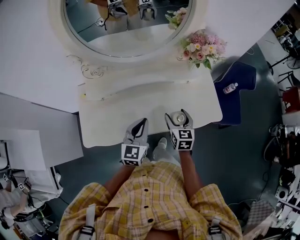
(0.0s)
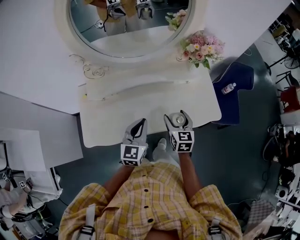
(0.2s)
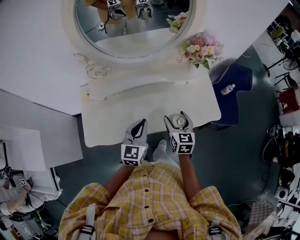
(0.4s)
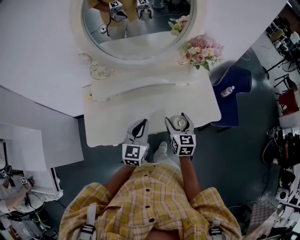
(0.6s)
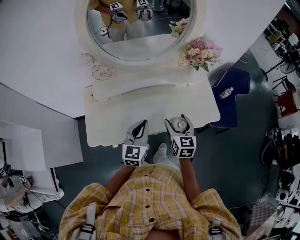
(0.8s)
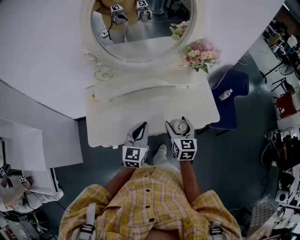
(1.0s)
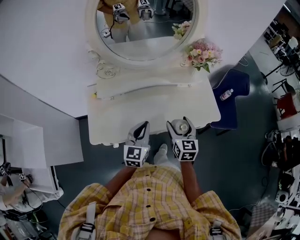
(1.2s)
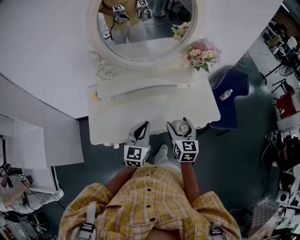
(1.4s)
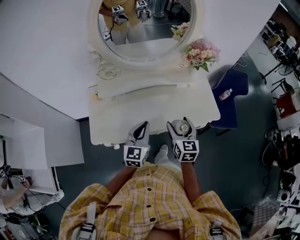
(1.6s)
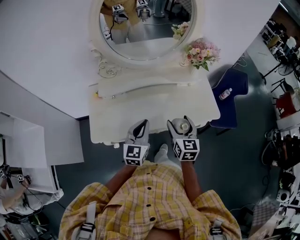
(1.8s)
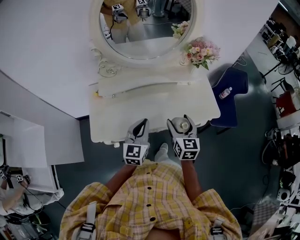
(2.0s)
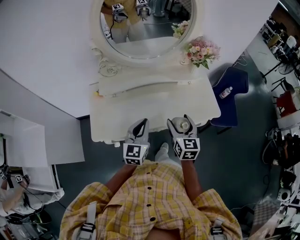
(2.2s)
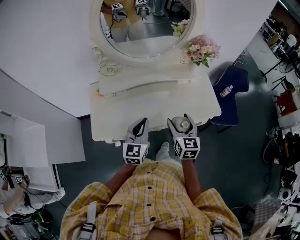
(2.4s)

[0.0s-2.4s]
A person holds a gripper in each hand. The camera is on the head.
0.0s to 1.2s: The left gripper heads backward, covering approximately 5 cm. The right gripper goes roughly 15 cm upward and backward.
1.2s to 2.4s: The grippers stay close to where they were, moving slightly.

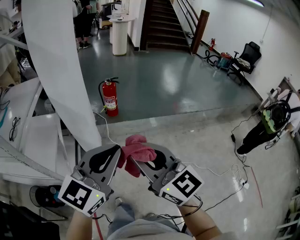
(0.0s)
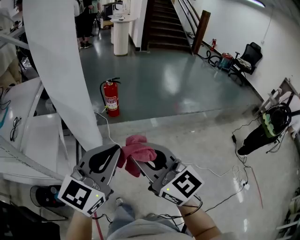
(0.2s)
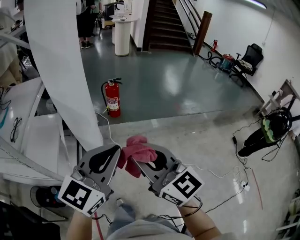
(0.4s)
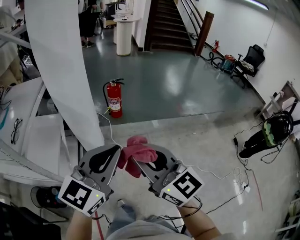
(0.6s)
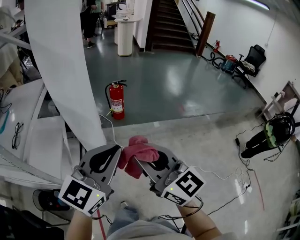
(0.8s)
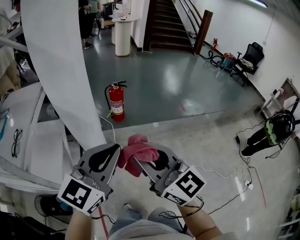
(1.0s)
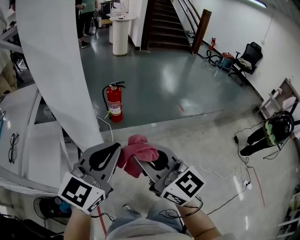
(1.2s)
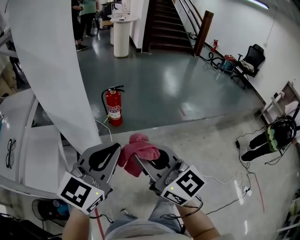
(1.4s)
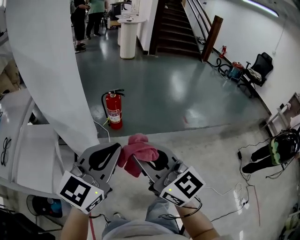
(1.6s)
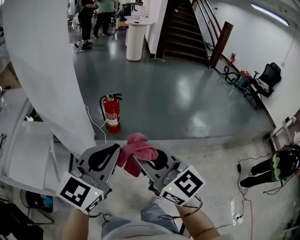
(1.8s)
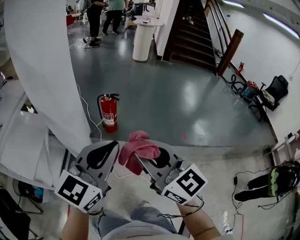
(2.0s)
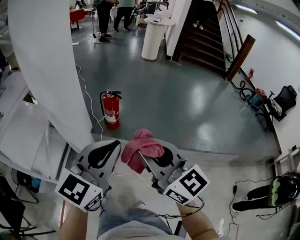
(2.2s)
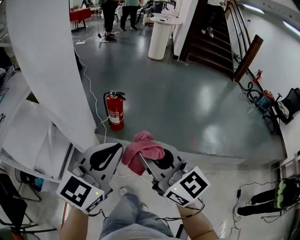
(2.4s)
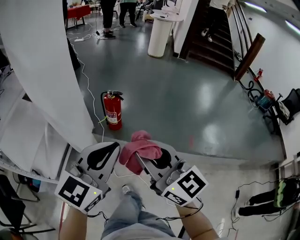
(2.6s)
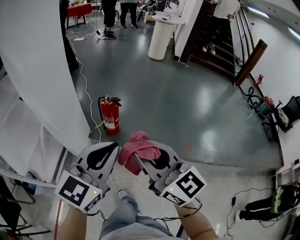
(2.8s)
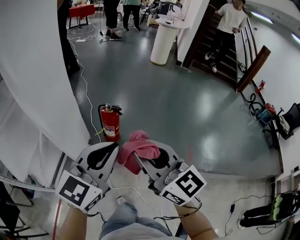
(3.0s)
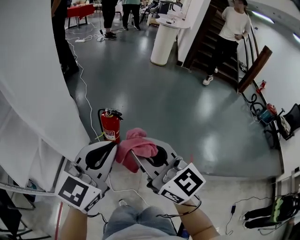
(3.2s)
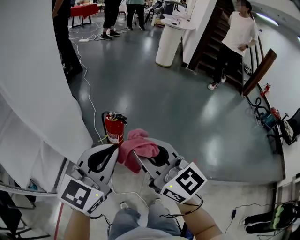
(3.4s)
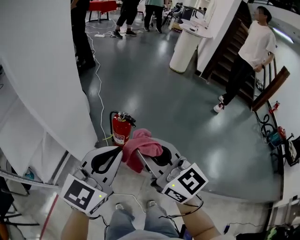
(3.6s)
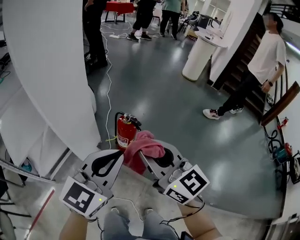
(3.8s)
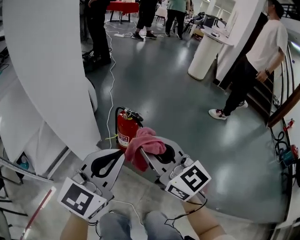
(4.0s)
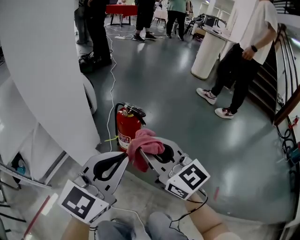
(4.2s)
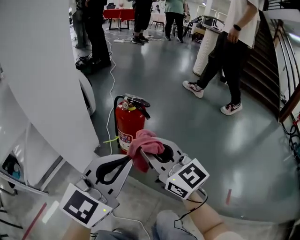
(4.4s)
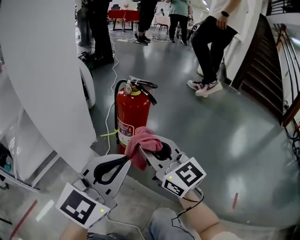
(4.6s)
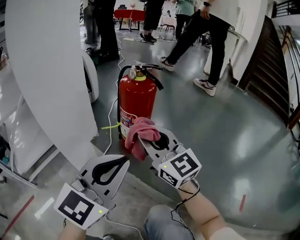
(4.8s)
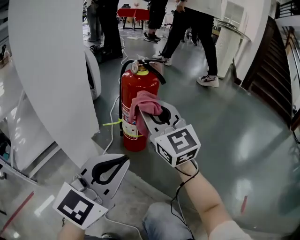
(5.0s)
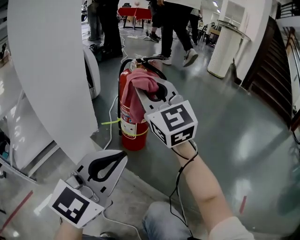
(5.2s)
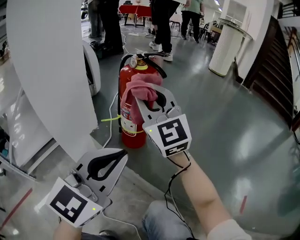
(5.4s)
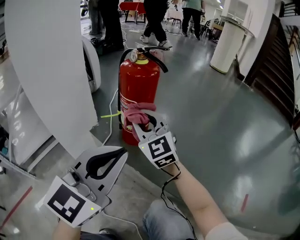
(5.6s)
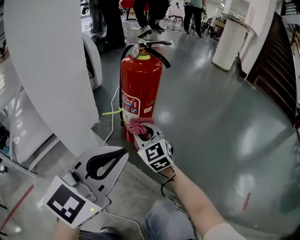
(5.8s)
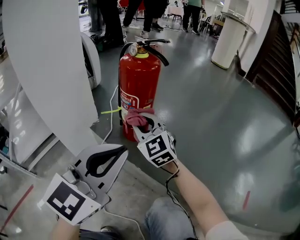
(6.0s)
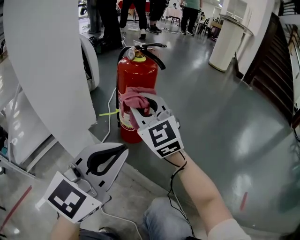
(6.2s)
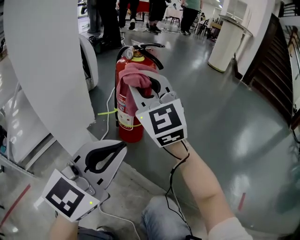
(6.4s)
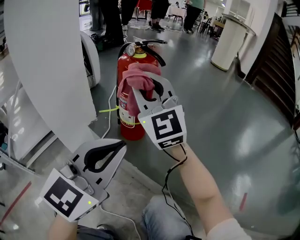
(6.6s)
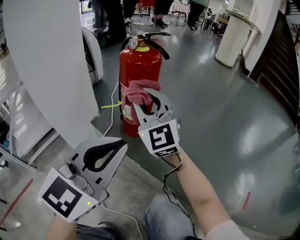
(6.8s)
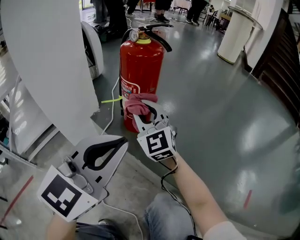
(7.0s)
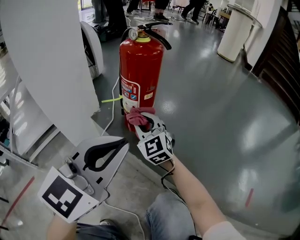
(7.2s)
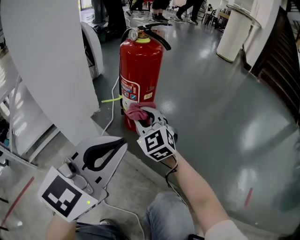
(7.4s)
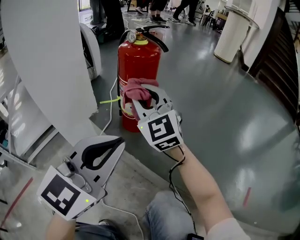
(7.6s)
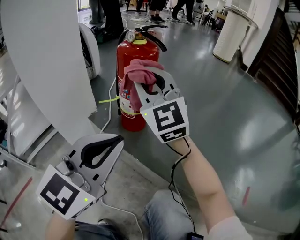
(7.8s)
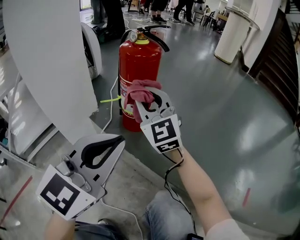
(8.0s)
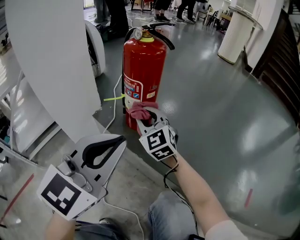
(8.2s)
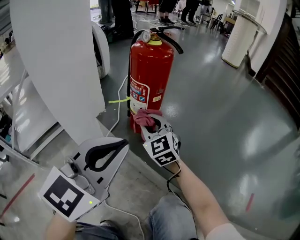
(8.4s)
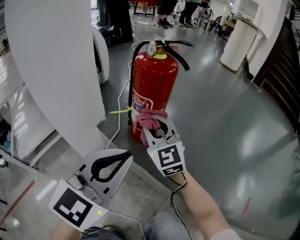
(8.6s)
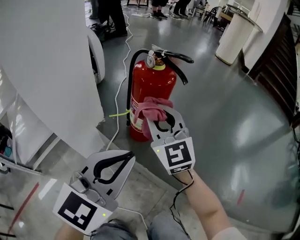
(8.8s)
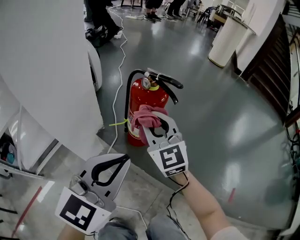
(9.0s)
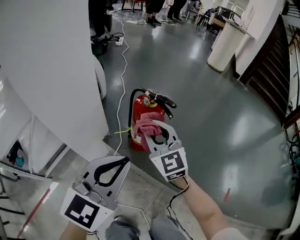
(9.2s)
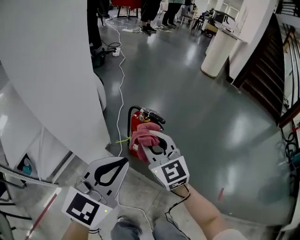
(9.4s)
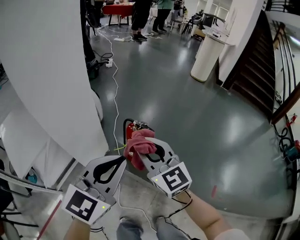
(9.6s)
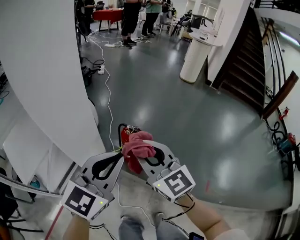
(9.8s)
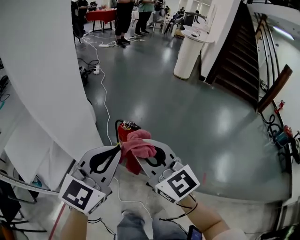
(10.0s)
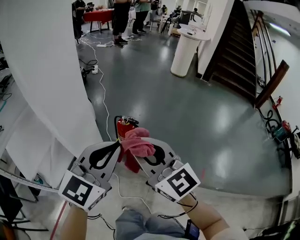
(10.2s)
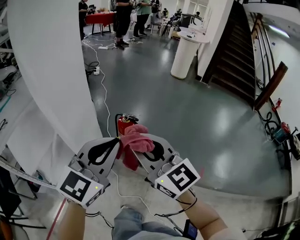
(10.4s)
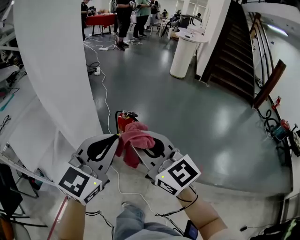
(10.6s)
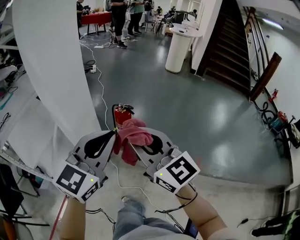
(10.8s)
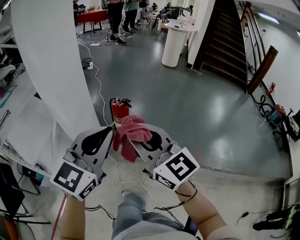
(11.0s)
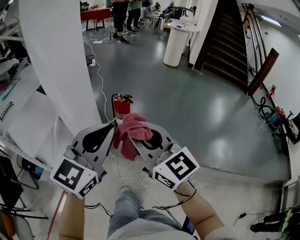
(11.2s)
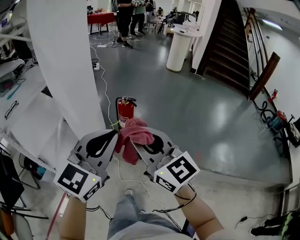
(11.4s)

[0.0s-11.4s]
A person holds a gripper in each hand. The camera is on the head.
0.0s to 1.4s: The two grippers go approximately 15 cm forward.
1.4s to 2.8s: The two grippers go about 30 cm to the right and forward. The left gripper turns by roughly 20 degrees; the right gripper changes its angle by about 20 degrees.
2.8s to 4.2s: The right gripper is displaced forward and downward by about 35 cm, while the left gripper shifts approximately 30 cm downward and forward.
4.2s to 5.6s: The left gripper travels downward by roughly 25 cm. Meanwhile the right gripper swings up and down, roughly 35 cm each way, with 2 reversals, and rotates some 30 degrees.
5.6s to 7.2s: The right gripper goes up and down, roughly 25 cm each way, reversing 2 times.
7.2s to 8.6s: The right gripper goes up and down, roughly 20 cm each way, reversing 2 times.
8.6s to 10.0s: Both grippers move upward, roughly 50 cm.
10.0s to 11.4s: The grippers both shift backward by roughly 20 cm.

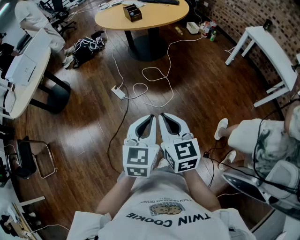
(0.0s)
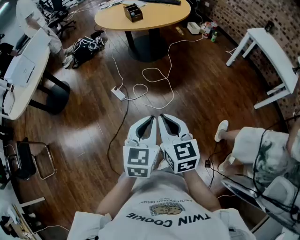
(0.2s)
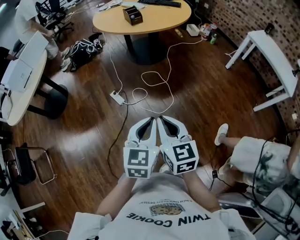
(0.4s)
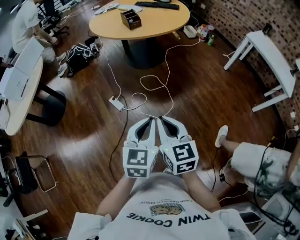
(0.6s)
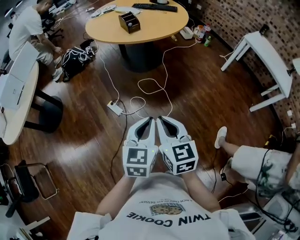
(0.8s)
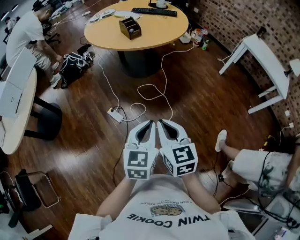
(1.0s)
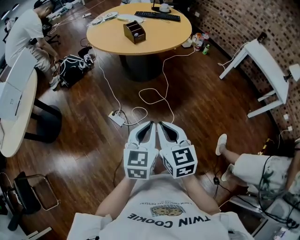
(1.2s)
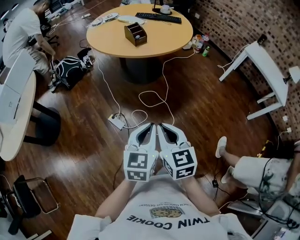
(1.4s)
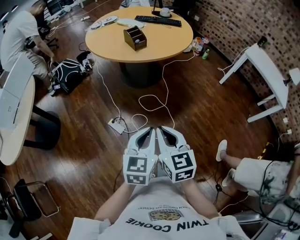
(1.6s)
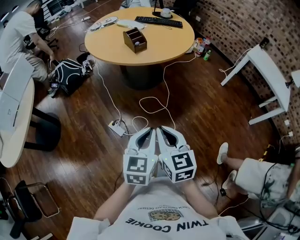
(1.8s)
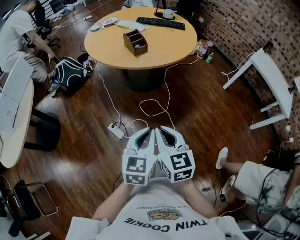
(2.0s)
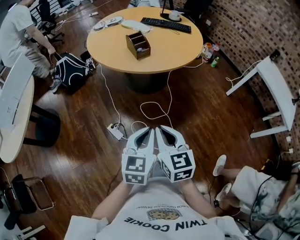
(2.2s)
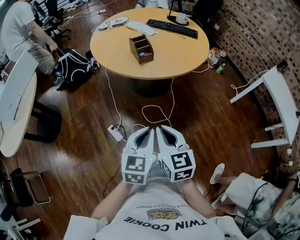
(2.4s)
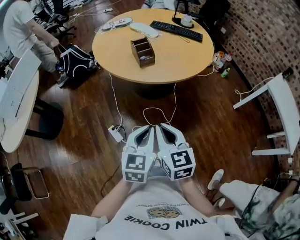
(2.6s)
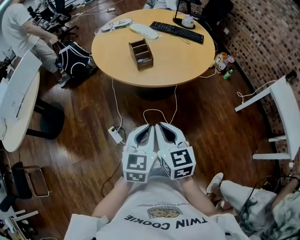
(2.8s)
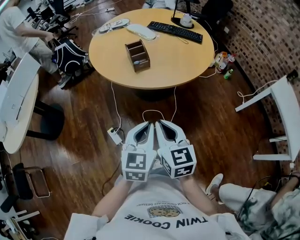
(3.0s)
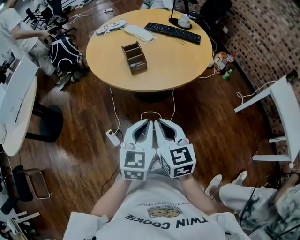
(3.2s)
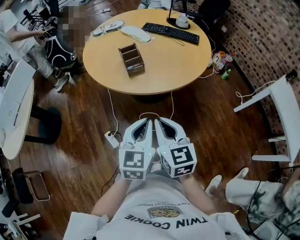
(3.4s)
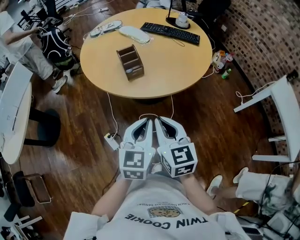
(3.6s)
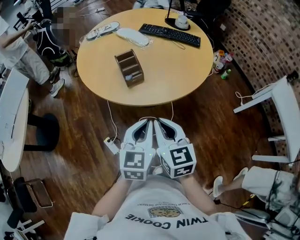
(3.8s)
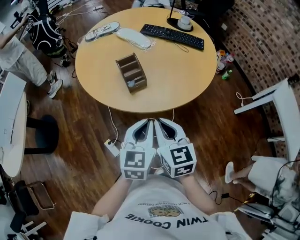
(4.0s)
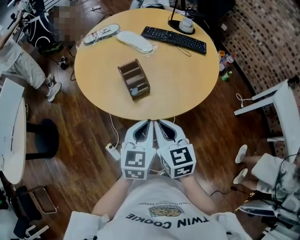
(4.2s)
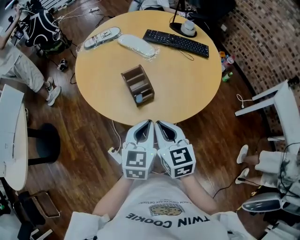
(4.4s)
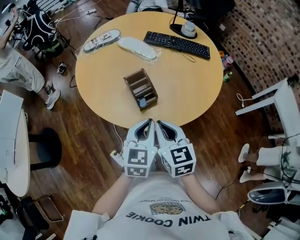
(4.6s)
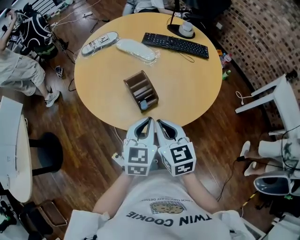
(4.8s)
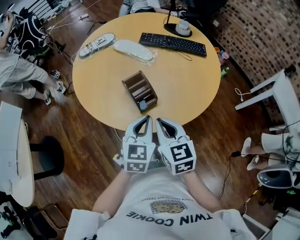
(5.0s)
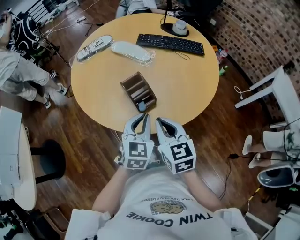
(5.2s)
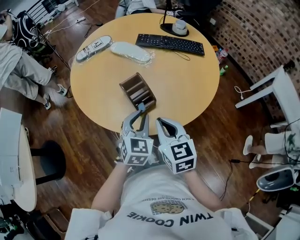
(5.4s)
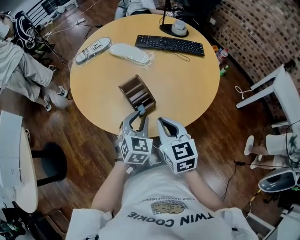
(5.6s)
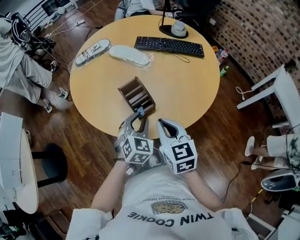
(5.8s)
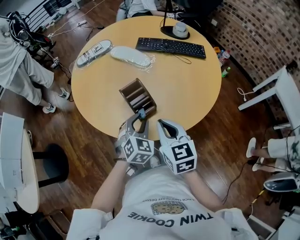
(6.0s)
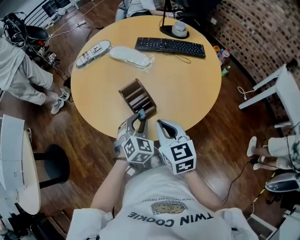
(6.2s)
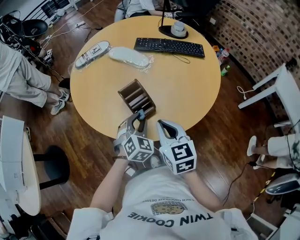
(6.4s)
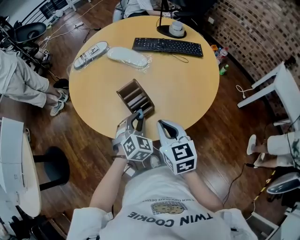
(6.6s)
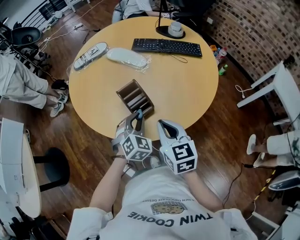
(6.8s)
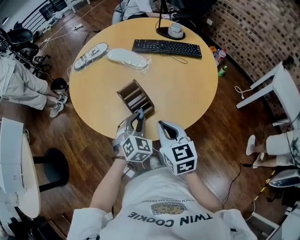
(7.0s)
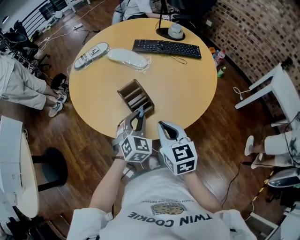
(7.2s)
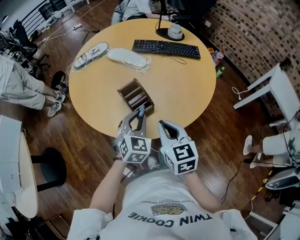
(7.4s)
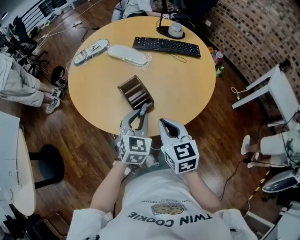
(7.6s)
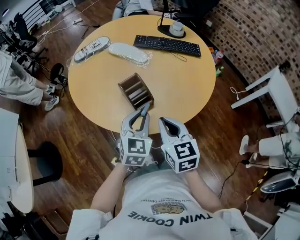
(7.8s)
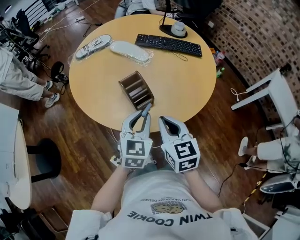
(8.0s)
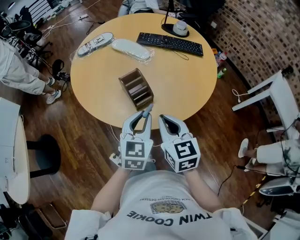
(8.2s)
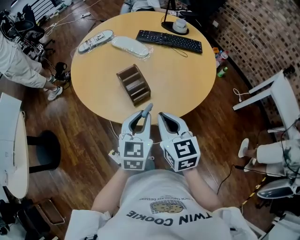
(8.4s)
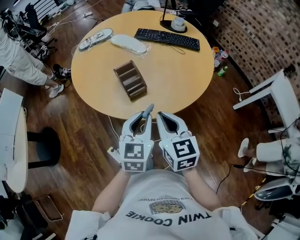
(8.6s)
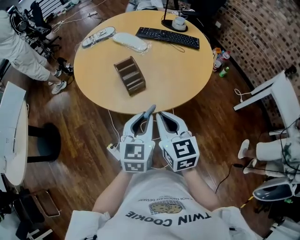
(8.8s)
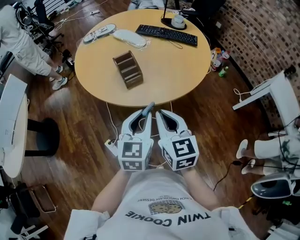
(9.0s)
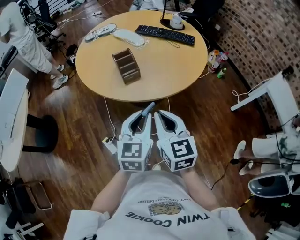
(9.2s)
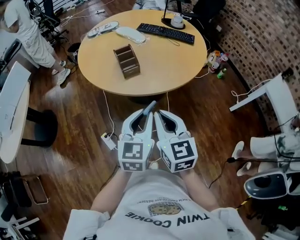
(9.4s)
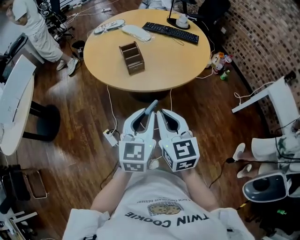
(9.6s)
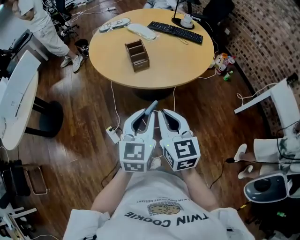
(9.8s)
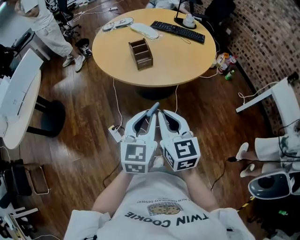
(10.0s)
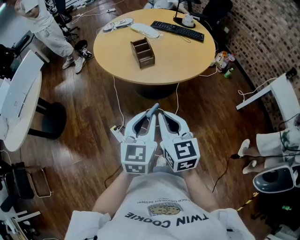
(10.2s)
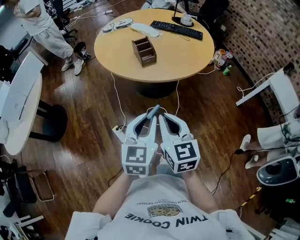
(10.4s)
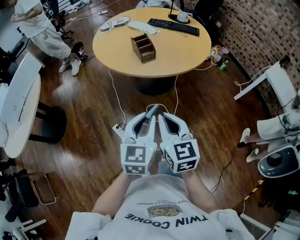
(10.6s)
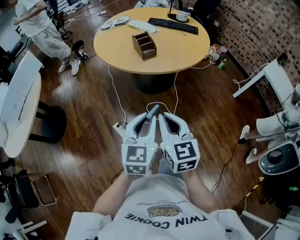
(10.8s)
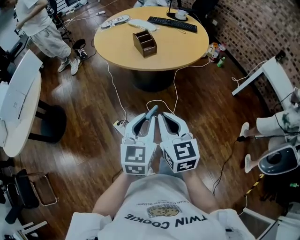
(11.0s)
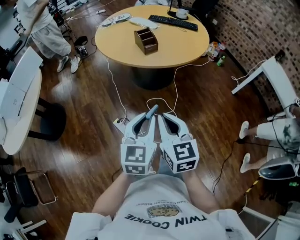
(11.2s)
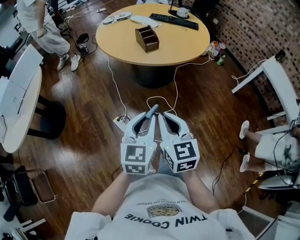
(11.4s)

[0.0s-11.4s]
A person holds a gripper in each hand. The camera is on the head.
0.0s to 1.4s: The grippers both shift forward and to the left by approximately 30 cm.
1.4s to 2.8s: Both grippers travel together forward, roughly 25 cm.
2.8s to 4.2s: The two grippers go approximately 25 cm forward.
4.2s to 5.6s: The left gripper travels forward, downward and to the left by approximately 15 cm, turns by approximately 30 degrees, and opens its fingers; the right gripper travels forward by approximately 10 cm.
5.6s to 7.2s: The grippers make only small movements.
7.2s to 8.6s: The left gripper shifts approximately 15 cm backward, upward and to the right, and swivels some 30 degrees. Meanwhile the right gripper goes approximately 5 cm backward.
8.6s to 10.0s: The grippers both shift backward by approximately 20 cm.
10.0s to 11.4s: The left gripper is displaced to the left, backward and downward by approximately 15 cm; the right gripper moves backward, to the left and downward, approximately 15 cm.
